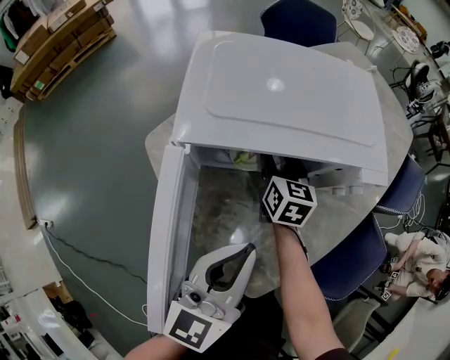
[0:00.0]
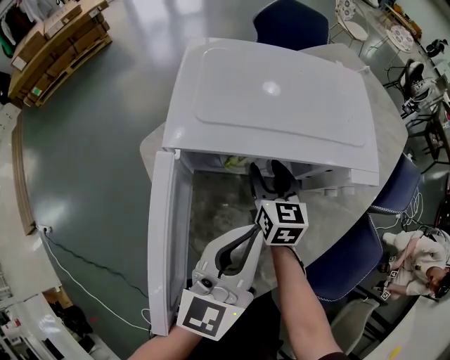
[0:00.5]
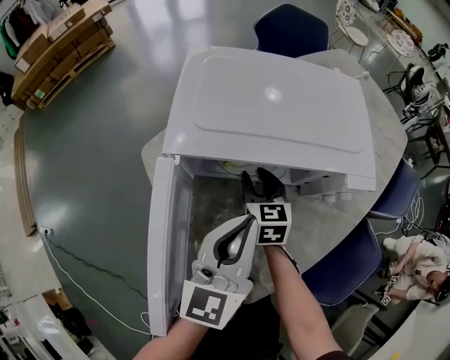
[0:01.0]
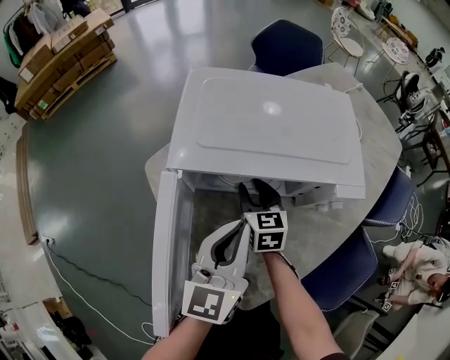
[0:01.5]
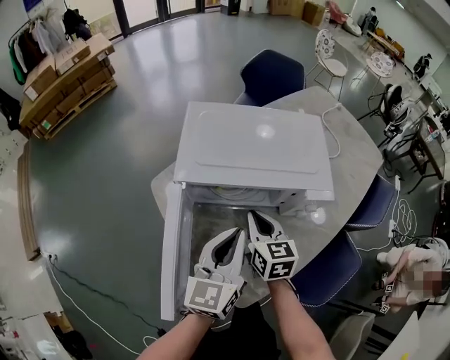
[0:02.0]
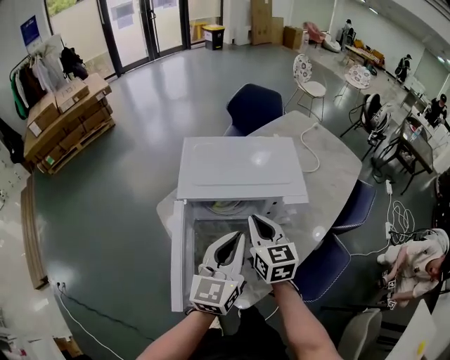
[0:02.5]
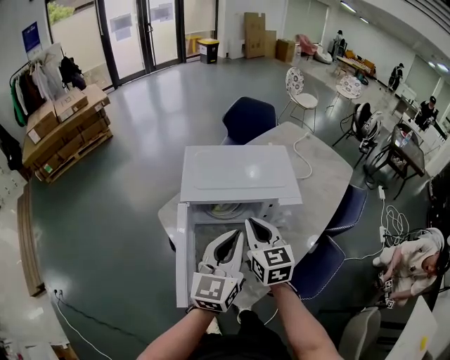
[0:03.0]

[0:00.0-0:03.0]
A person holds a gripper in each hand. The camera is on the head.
0:00.0 to 0:01.5: The right gripper ends up roughly 5 cm from where it was. Meanwhile the left gripper moves forward, about 5 cm.
0:01.5 to 0:03.0: The left gripper is displaced upward and backward by approximately 15 cm. Meanwhile the right gripper heads upward and backward, covering roughly 30 cm, and closes.

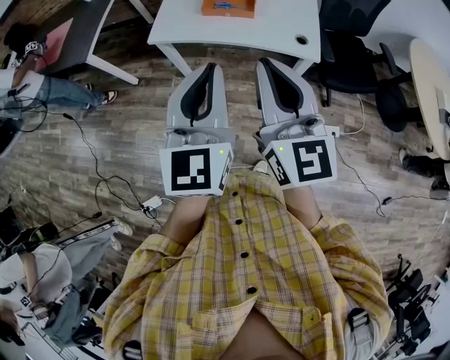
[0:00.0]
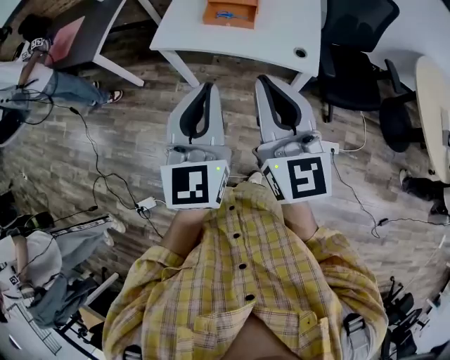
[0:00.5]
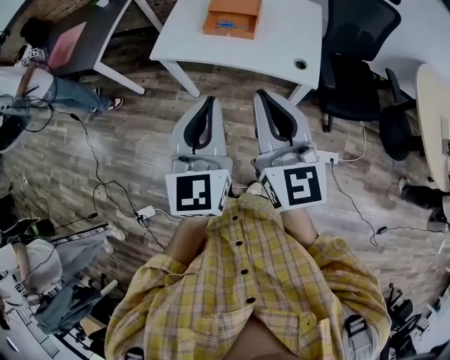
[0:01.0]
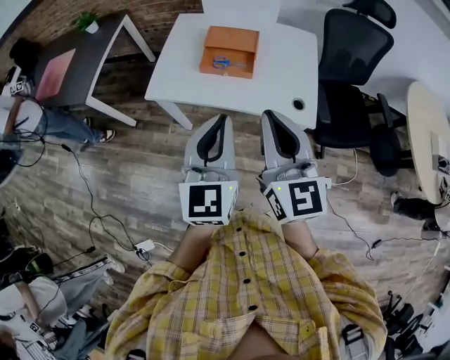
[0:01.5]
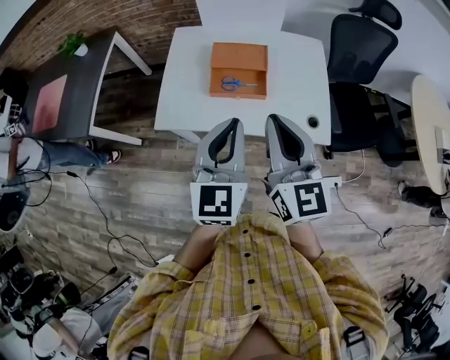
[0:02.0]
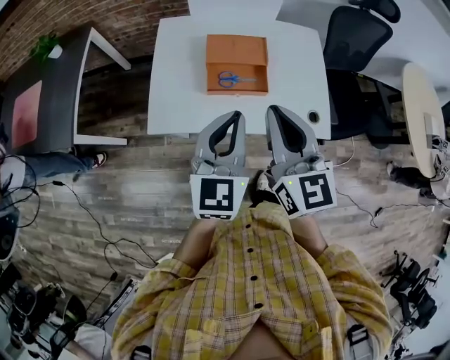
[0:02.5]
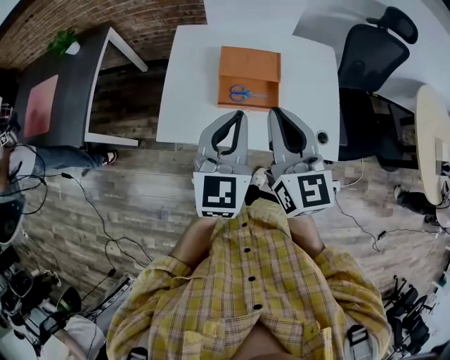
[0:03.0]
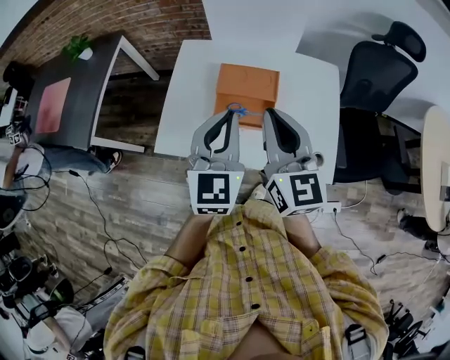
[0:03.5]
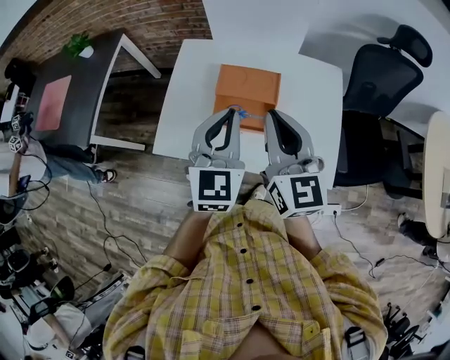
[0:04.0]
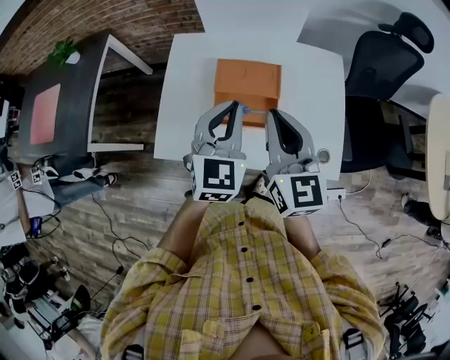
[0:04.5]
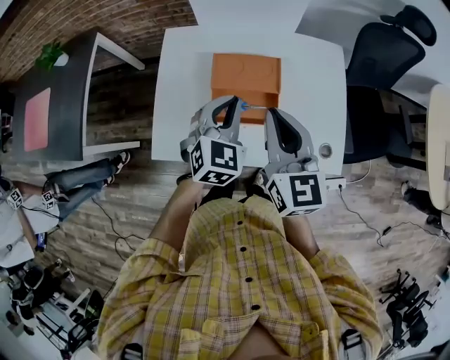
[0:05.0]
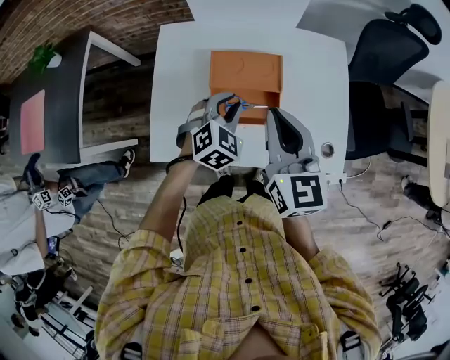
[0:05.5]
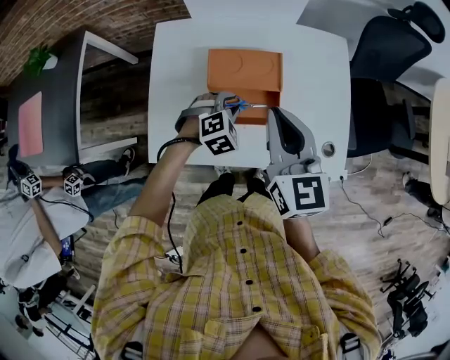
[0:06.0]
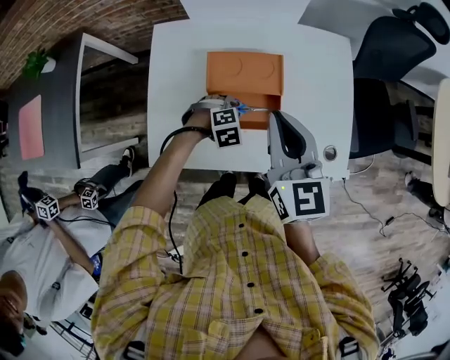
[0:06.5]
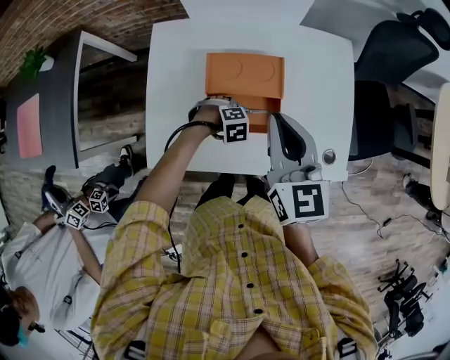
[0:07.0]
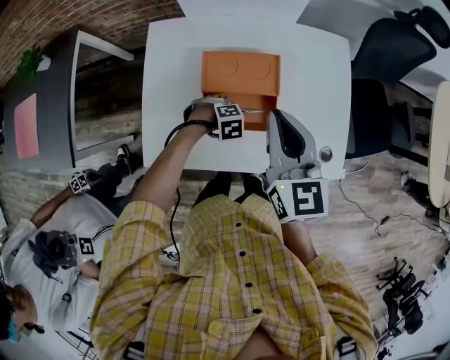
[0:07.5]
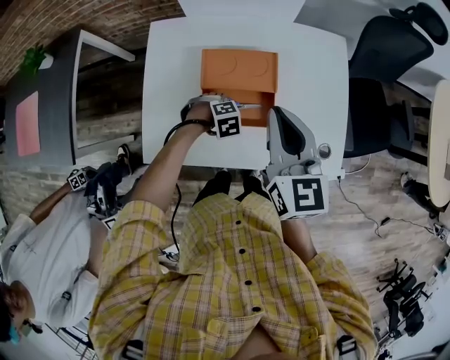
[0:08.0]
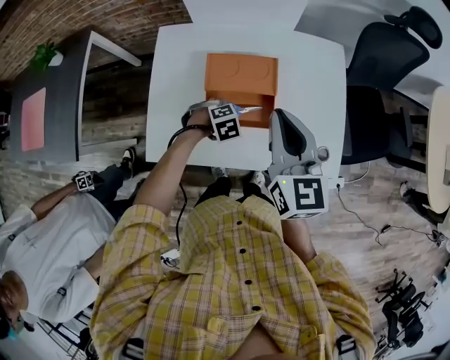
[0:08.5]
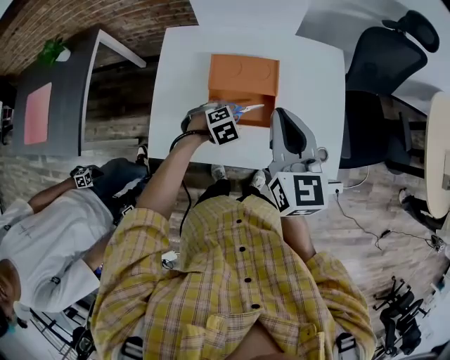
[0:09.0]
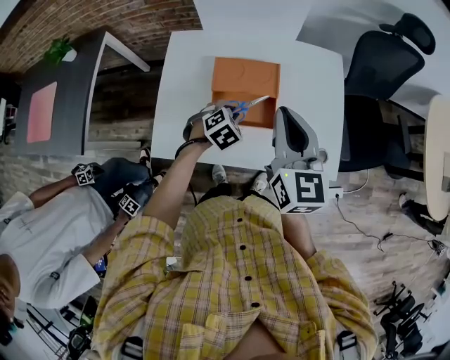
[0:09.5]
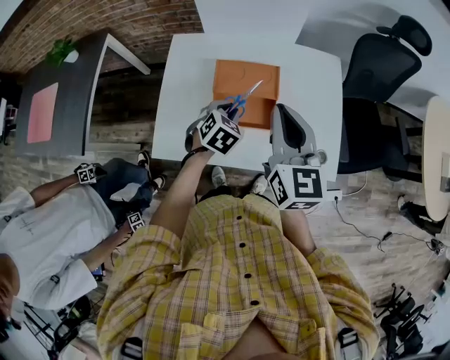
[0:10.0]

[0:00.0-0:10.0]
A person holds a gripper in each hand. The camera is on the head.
0:00.0 to 0:02.0: Both grippers move forward, roughly 30 cm.
0:02.0 to 0:04.0: The two grippers go roughly 20 cm forward.
0:04.0 to 0:06.0: The right gripper travels downward and forward by roughly 10 cm, while the left gripper heads downward, covering some 30 cm, angles its fingers downward, by about 50 degrees, and opens its fingers.
0:06.0 to 0:08.0: The left gripper goes some 10 cm downward, and rotates roughly 20 degrees.
0:08.0 to 0:10.0: The right gripper shifts approximately 5 cm upward; the left gripper shifts some 15 cm upward, and turns by roughly 50 degrees.

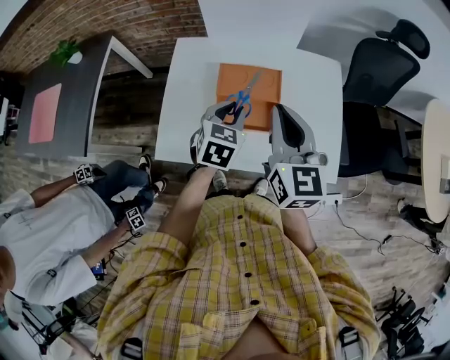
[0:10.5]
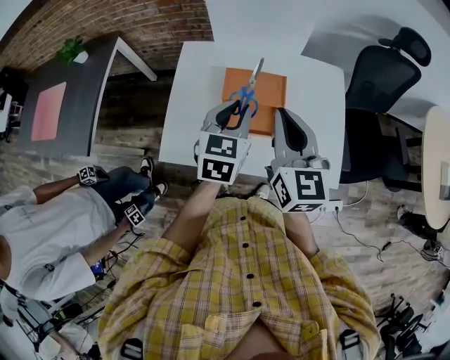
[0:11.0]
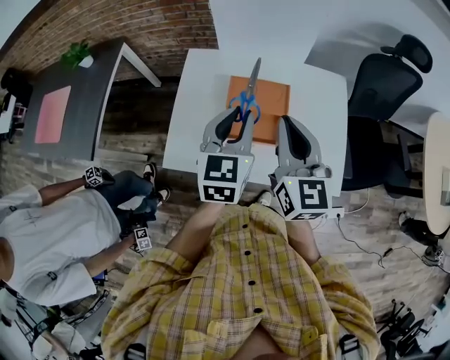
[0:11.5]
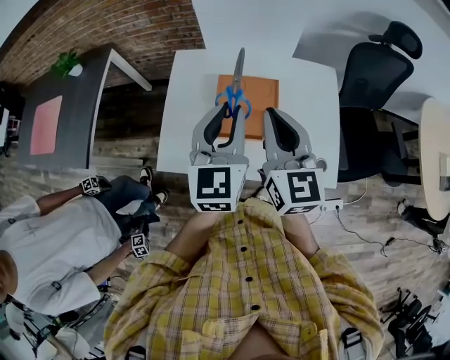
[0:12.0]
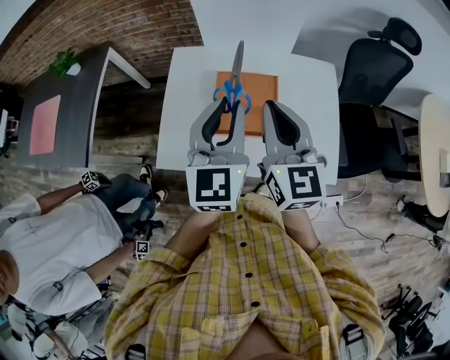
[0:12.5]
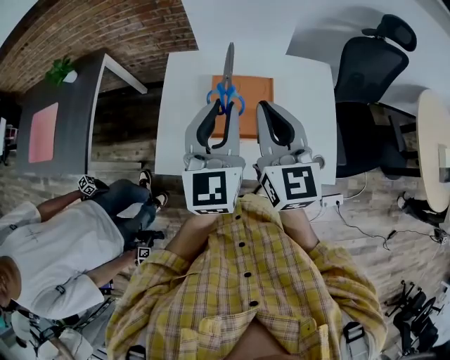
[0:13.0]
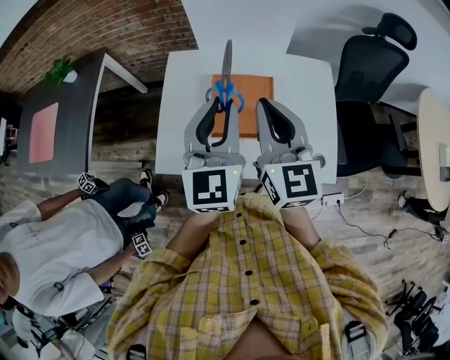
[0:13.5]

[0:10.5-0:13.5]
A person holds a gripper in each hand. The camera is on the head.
0:10.5 to 0:12.0: The left gripper travels upward by about 15 cm, and rotates some 30 degrees.
0:12.0 to 0:13.5: There are only small adjustments of the grippers.

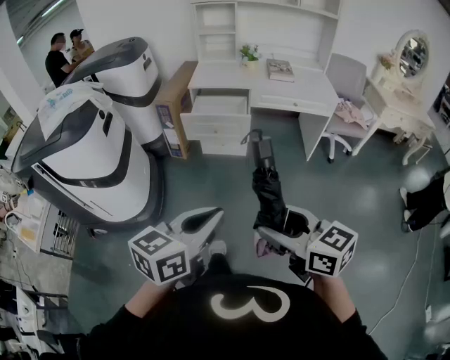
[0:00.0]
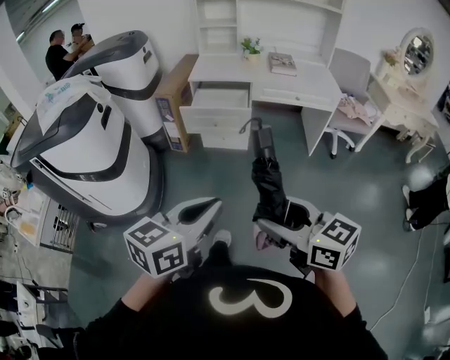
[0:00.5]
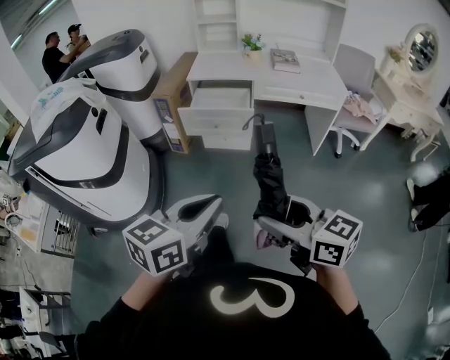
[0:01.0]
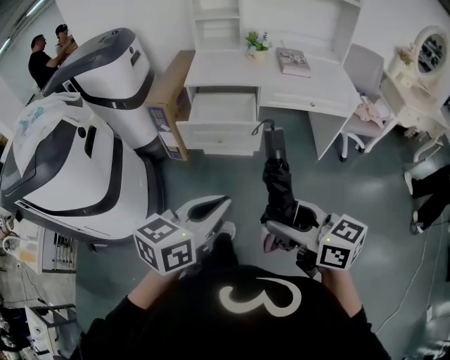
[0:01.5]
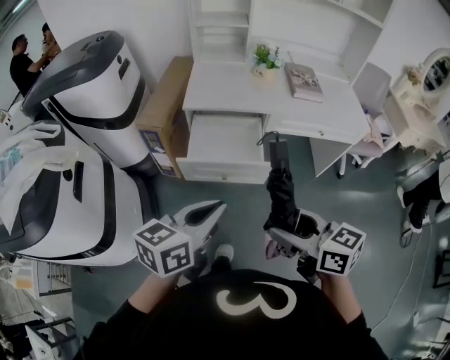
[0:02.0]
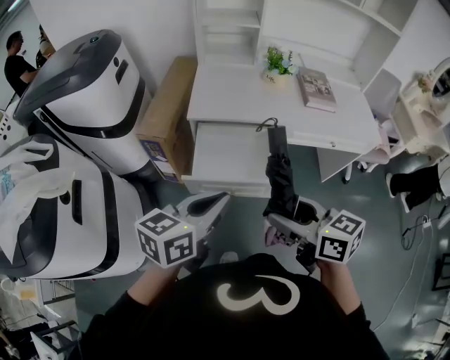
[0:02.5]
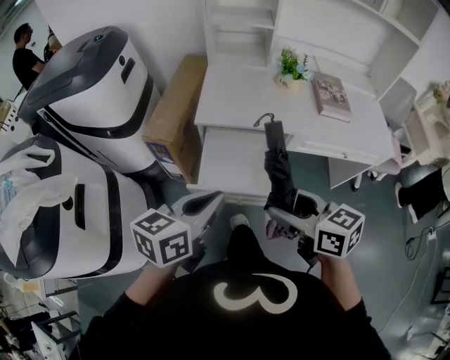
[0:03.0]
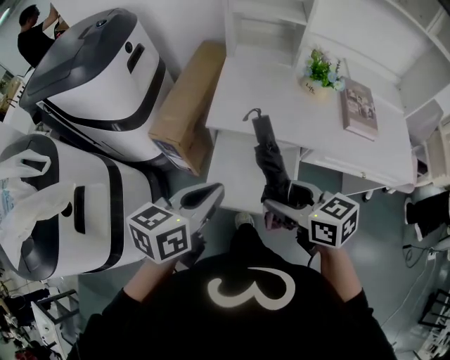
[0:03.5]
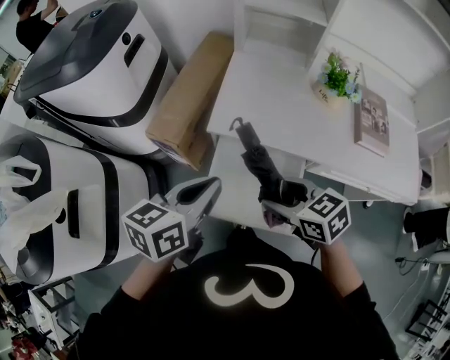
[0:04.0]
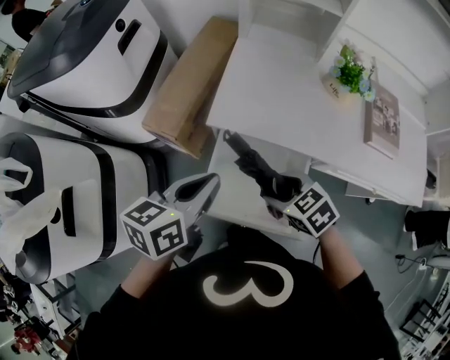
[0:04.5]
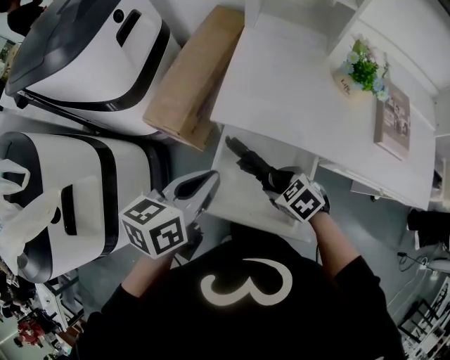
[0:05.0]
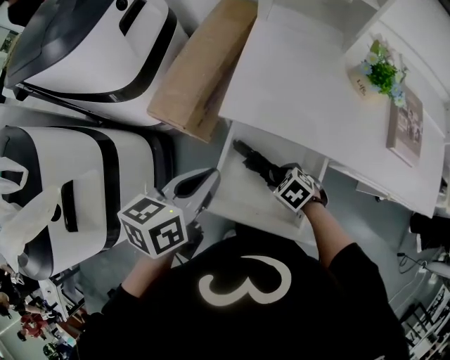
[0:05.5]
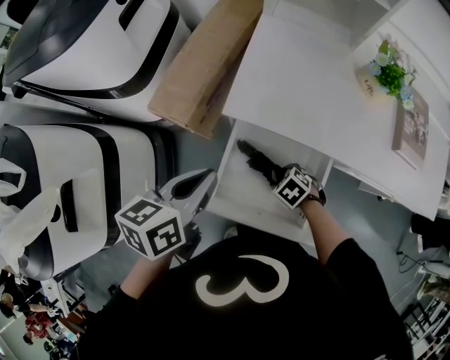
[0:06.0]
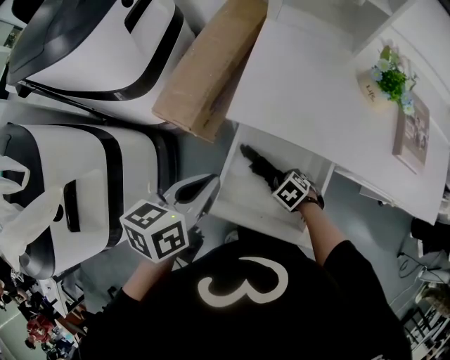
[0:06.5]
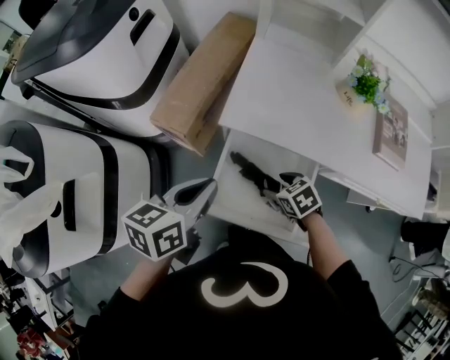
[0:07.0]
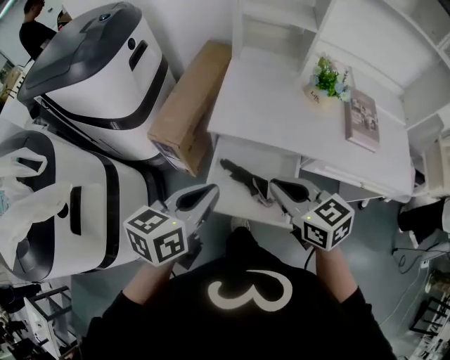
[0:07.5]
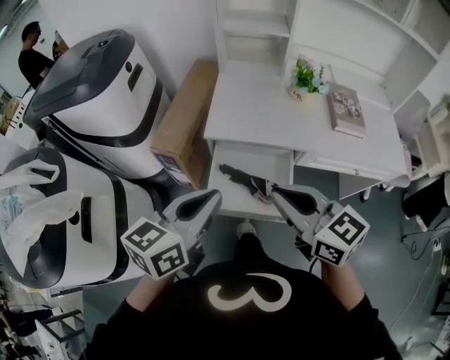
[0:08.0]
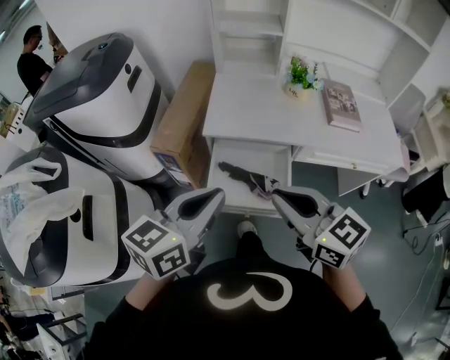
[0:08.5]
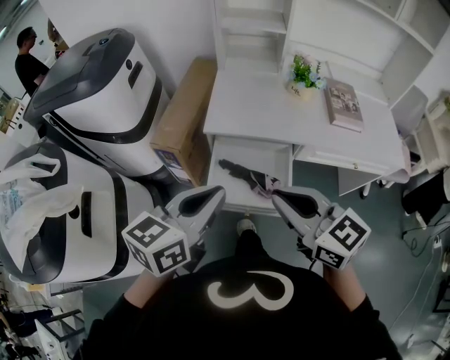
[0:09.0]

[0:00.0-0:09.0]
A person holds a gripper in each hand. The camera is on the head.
0:00.0 to 0:02.0: Both grippers are carried forward, approximately 40 cm.
0:02.0 to 0:04.5: The left gripper is displaced forward by approximately 40 cm, and changes its angle by roughly 20 degrees; the right gripper is displaced forward and downward by some 50 cm, and points its fingers roughly 30 degrees further downward.
0:04.5 to 0:07.0: The right gripper is displaced downward by roughly 10 cm.
0:07.0 to 0:09.0: The left gripper travels backward and upward by some 20 cm, and turns by approximately 30 degrees, while the right gripper heads upward and backward, covering about 40 cm, angles its fingers upward, by approximately 50 degrees, and closes.

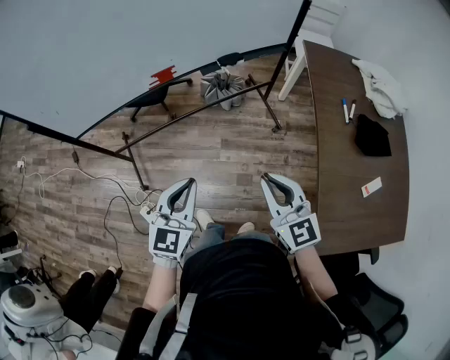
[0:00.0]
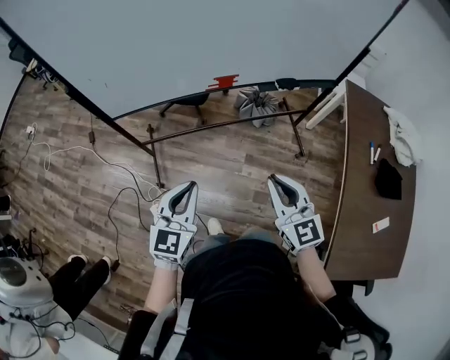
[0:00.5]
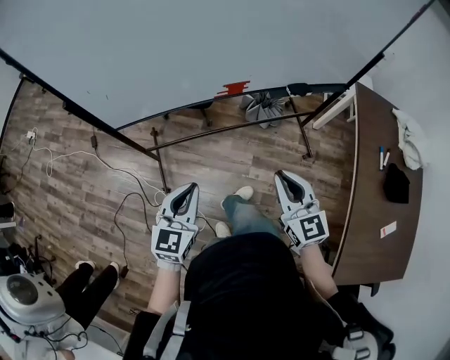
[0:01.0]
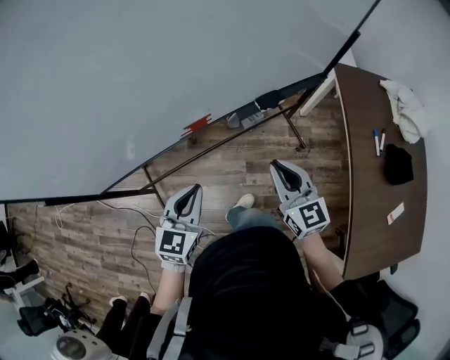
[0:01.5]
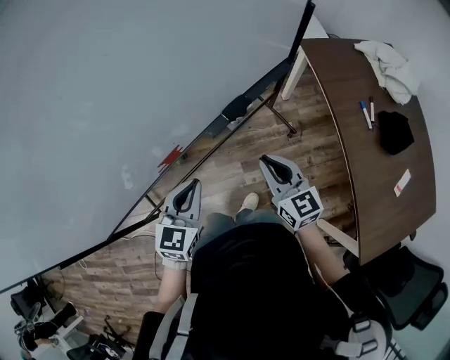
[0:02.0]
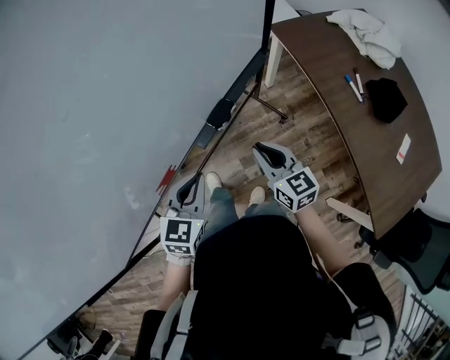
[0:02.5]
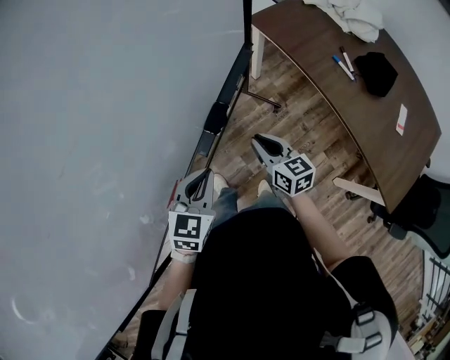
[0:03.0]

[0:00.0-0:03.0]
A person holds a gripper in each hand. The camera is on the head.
0:00.0 to 0:01.5: The left gripper moves forward and to the left, about 30 cm, while the right gripper goes approximately 30 cm forward.
0:01.5 to 0:03.0: The left gripper moves about 25 cm, and swivels approximately 40 degrees. The right gripper moves approximately 20 cm, and changes its angle by some 40 degrees.
